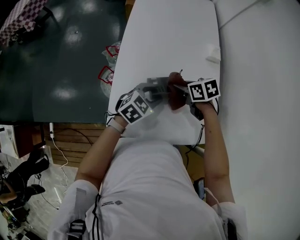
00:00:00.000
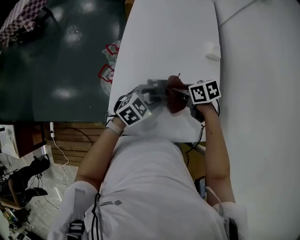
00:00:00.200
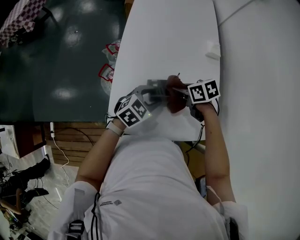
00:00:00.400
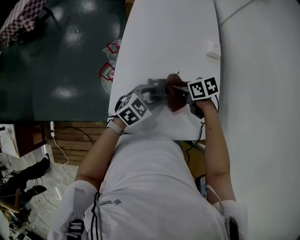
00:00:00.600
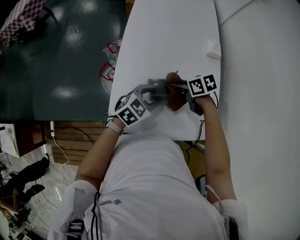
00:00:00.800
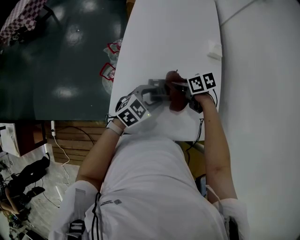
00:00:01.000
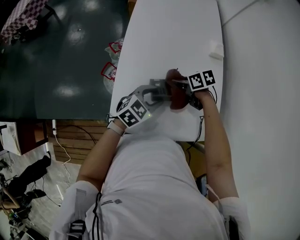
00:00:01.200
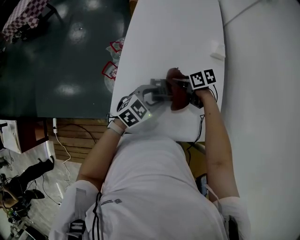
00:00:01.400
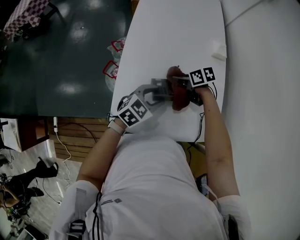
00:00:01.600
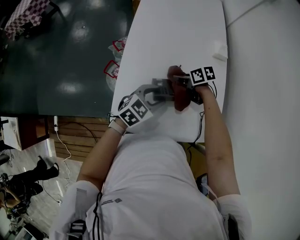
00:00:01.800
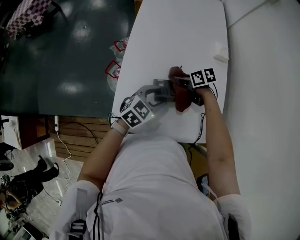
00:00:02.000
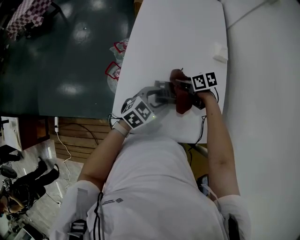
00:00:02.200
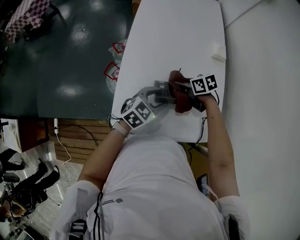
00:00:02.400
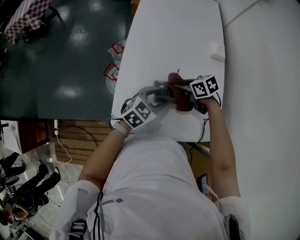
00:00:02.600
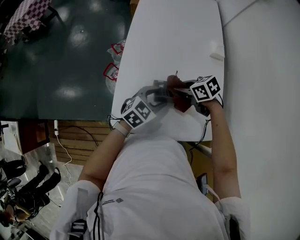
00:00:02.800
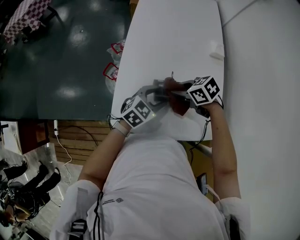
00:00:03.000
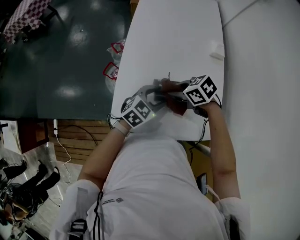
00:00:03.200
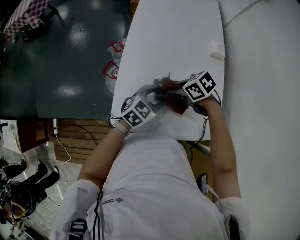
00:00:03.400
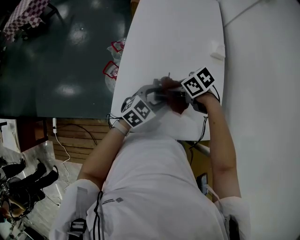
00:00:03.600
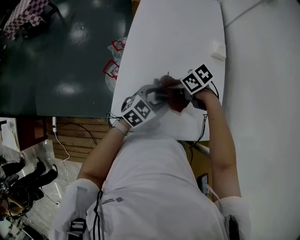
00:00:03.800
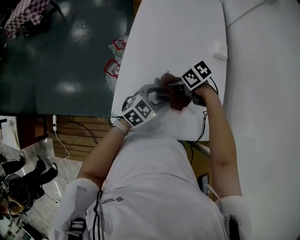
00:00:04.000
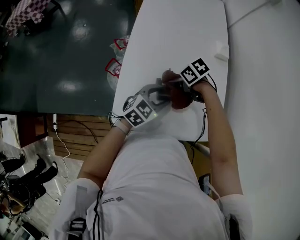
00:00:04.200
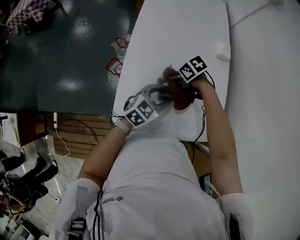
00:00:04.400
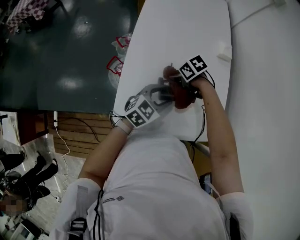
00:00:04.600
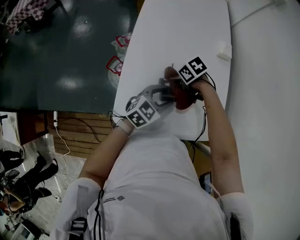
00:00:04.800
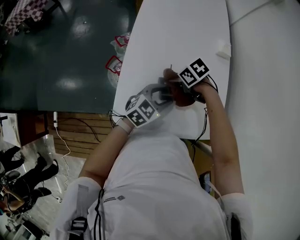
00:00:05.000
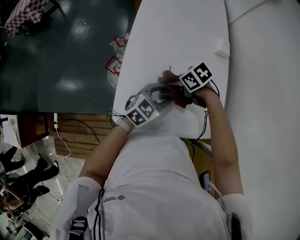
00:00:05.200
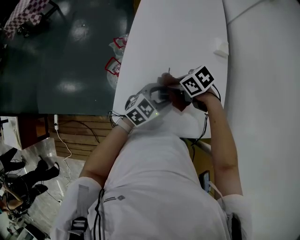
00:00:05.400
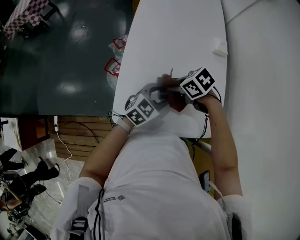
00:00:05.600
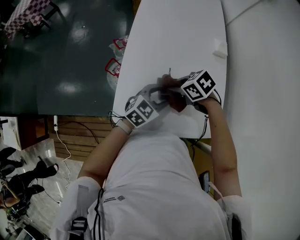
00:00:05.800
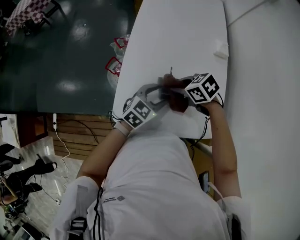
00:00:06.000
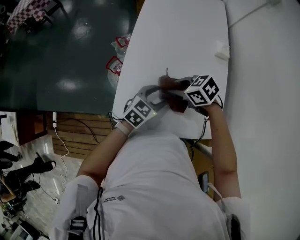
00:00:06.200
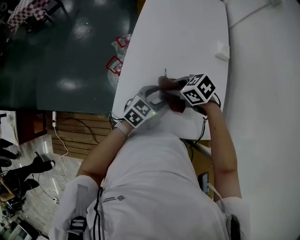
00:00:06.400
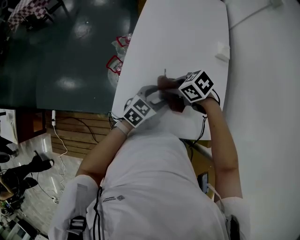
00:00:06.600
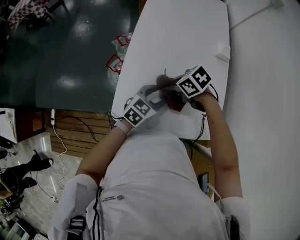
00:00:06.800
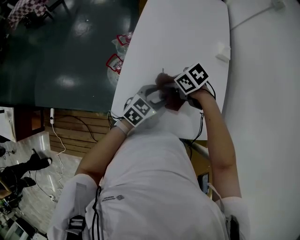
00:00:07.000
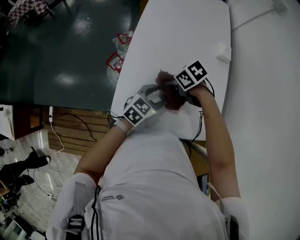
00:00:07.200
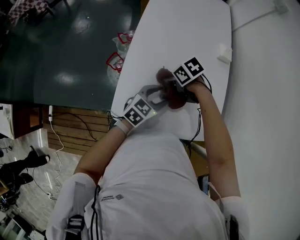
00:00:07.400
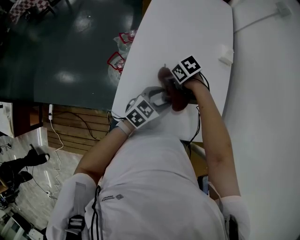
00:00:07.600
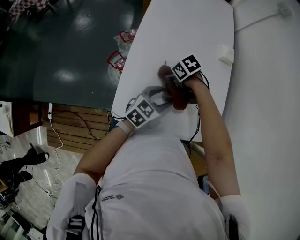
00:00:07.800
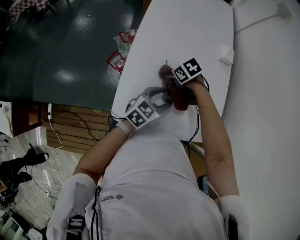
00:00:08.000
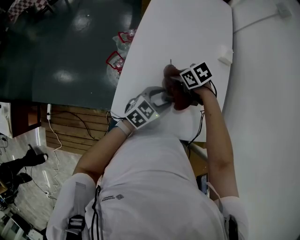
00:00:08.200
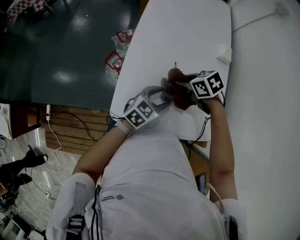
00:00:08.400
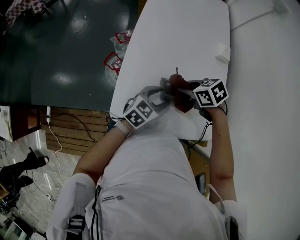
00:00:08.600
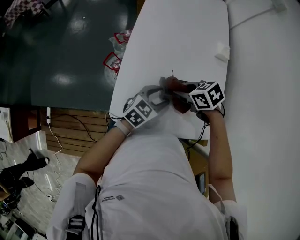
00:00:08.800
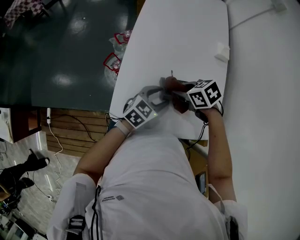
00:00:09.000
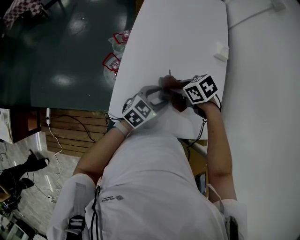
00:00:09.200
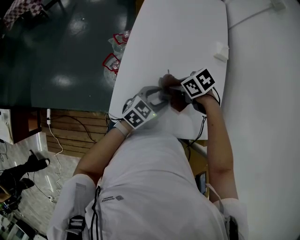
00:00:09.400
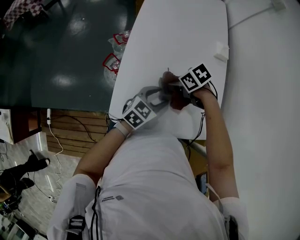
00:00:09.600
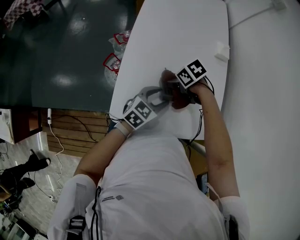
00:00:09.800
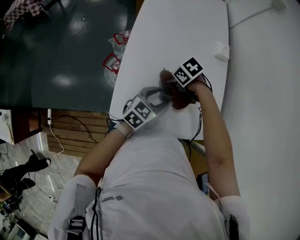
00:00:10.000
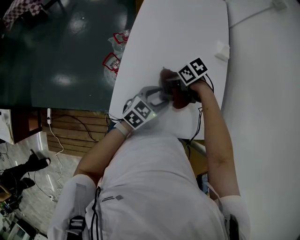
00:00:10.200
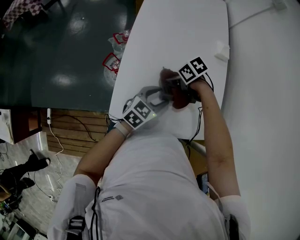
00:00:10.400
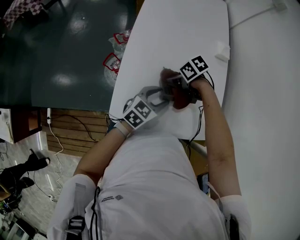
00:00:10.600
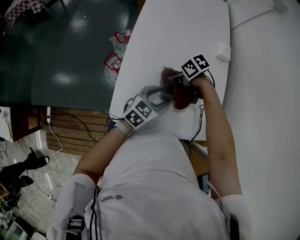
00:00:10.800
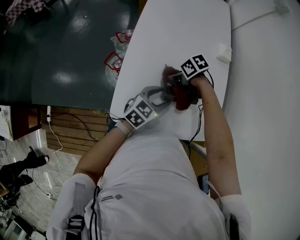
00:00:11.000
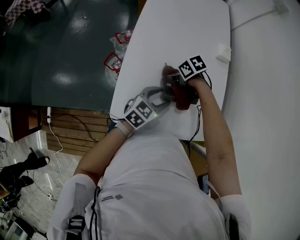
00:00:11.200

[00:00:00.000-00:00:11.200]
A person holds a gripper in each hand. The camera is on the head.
00:00:00.000 to 00:00:01.600: The right gripper moves downward, about 5 cm.
00:00:01.600 to 00:00:03.200: The right gripper moves some 10 cm, and swivels about 30 degrees.
00:00:03.200 to 00:00:04.800: The right gripper heads downward, covering approximately 5 cm.
00:00:04.800 to 00:00:06.400: The right gripper ends up some 10 cm from where it was.
00:00:06.400 to 00:00:08.000: The right gripper heads downward, covering some 10 cm.
00:00:09.600 to 00:00:11.200: The right gripper moves approximately 5 cm.

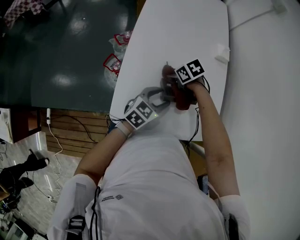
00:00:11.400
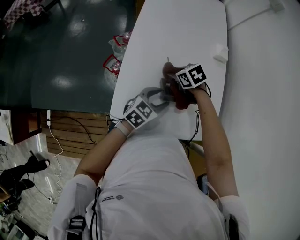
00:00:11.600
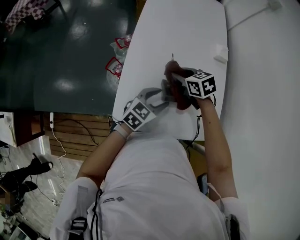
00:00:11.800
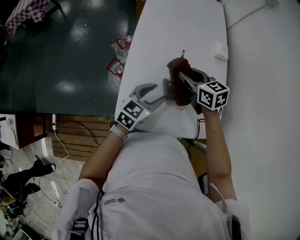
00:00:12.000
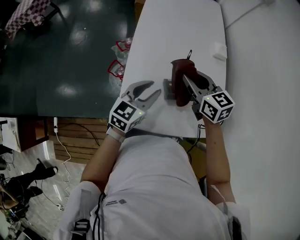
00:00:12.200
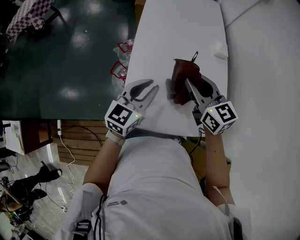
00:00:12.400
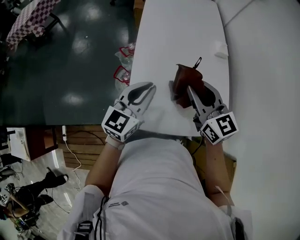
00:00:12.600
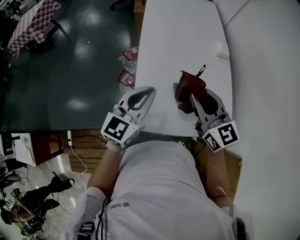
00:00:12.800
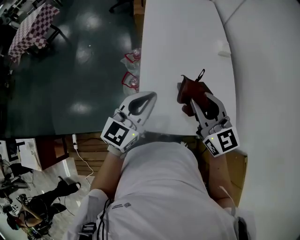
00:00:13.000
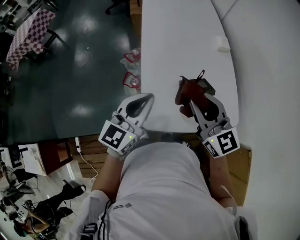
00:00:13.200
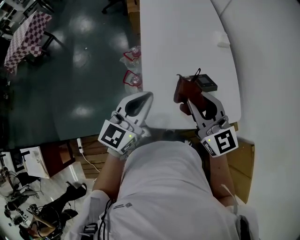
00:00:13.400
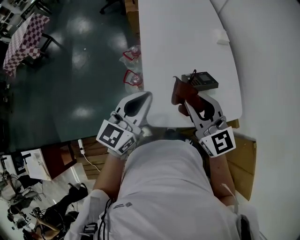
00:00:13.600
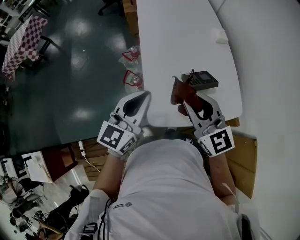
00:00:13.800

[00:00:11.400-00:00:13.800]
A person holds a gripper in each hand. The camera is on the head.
00:00:11.400 to 00:00:12.600: The left gripper heads upward, covering about 15 cm, rotates approximately 30 degrees, and closes. The right gripper is displaced upward by about 25 cm, and angles its fingers upward, by about 50 degrees.
00:00:12.600 to 00:00:13.800: The right gripper heads backward and to the left, covering about 10 cm; the left gripper travels to the left by about 10 cm.

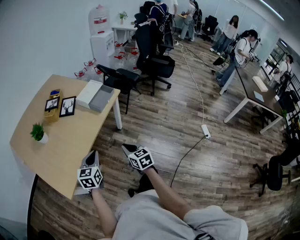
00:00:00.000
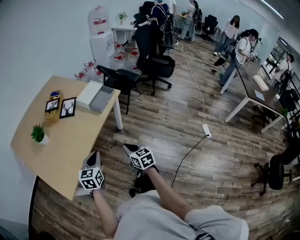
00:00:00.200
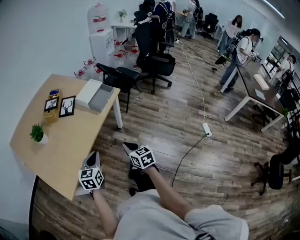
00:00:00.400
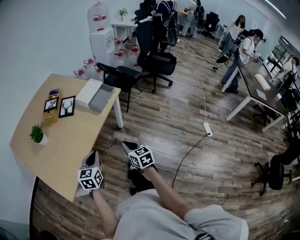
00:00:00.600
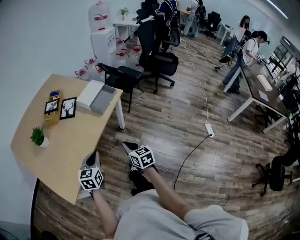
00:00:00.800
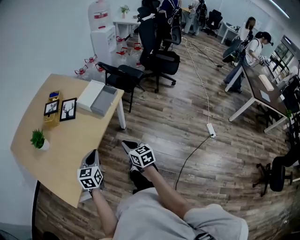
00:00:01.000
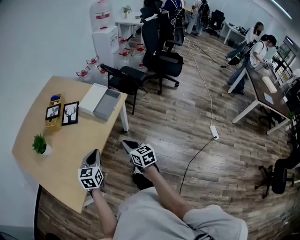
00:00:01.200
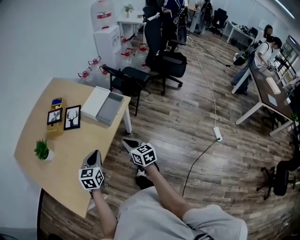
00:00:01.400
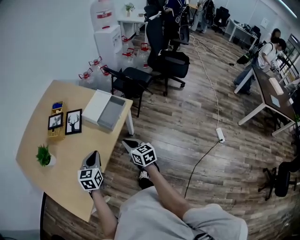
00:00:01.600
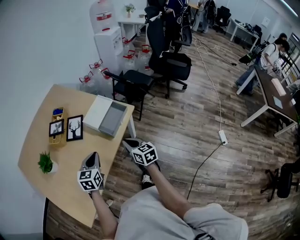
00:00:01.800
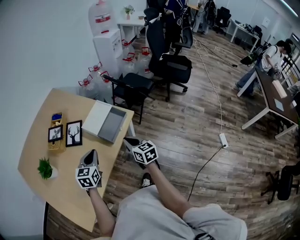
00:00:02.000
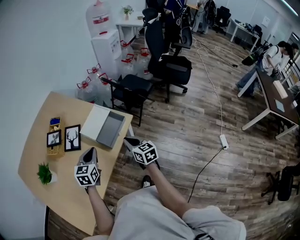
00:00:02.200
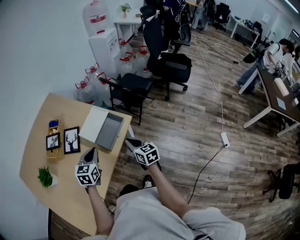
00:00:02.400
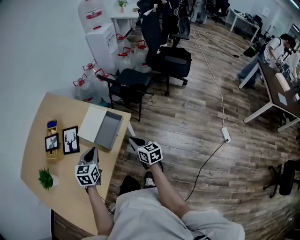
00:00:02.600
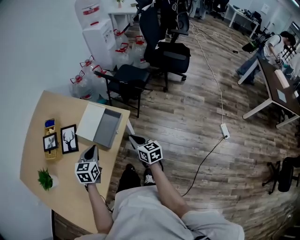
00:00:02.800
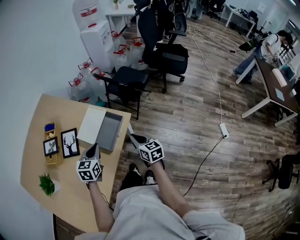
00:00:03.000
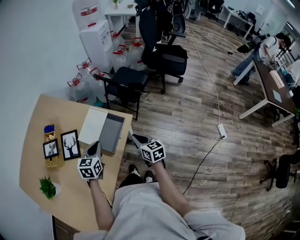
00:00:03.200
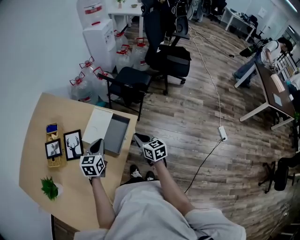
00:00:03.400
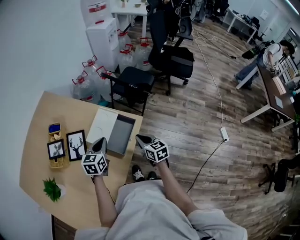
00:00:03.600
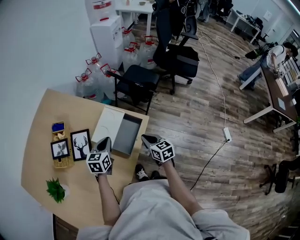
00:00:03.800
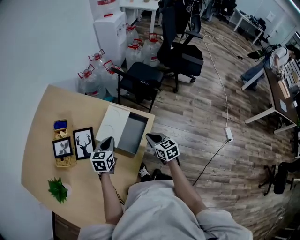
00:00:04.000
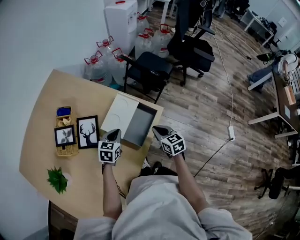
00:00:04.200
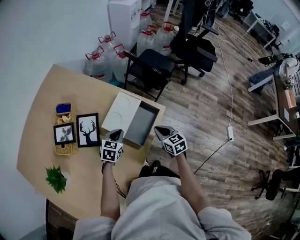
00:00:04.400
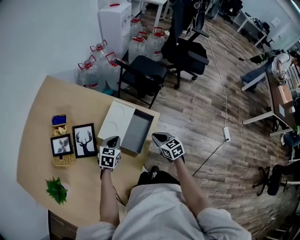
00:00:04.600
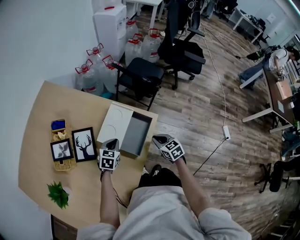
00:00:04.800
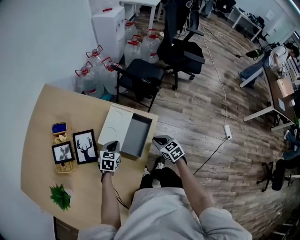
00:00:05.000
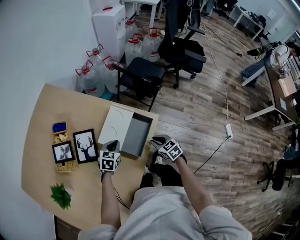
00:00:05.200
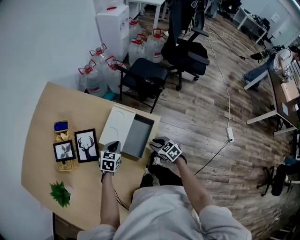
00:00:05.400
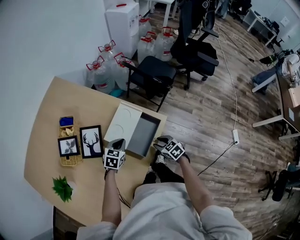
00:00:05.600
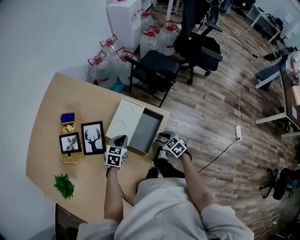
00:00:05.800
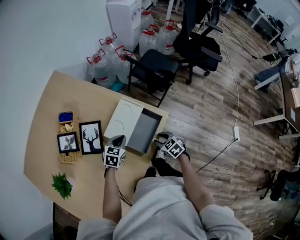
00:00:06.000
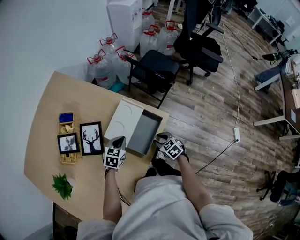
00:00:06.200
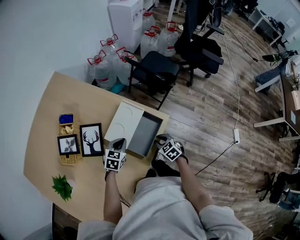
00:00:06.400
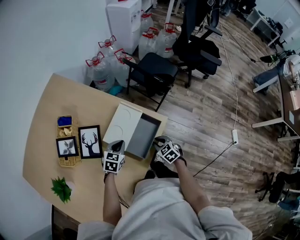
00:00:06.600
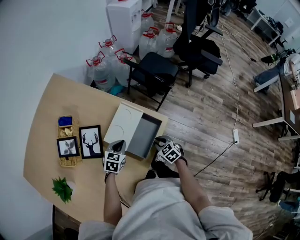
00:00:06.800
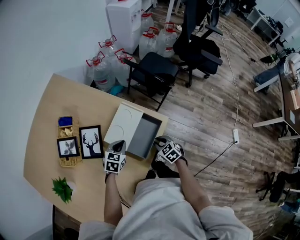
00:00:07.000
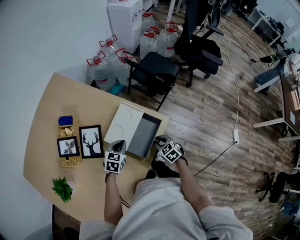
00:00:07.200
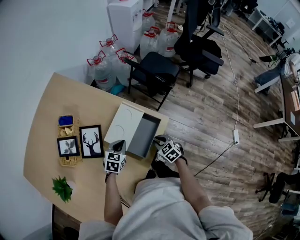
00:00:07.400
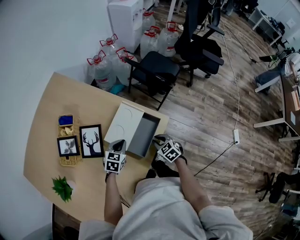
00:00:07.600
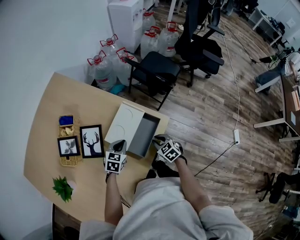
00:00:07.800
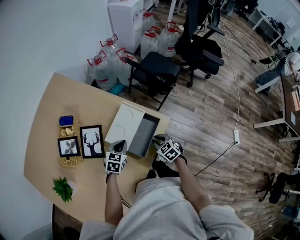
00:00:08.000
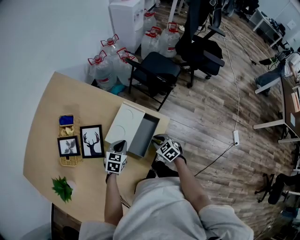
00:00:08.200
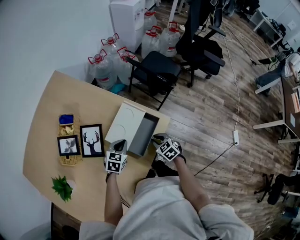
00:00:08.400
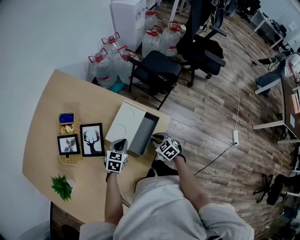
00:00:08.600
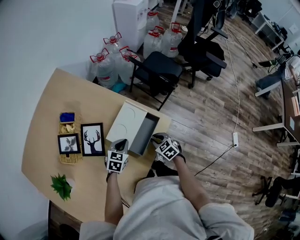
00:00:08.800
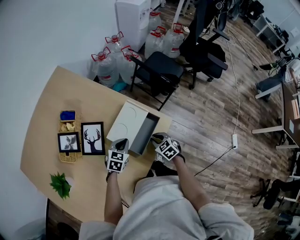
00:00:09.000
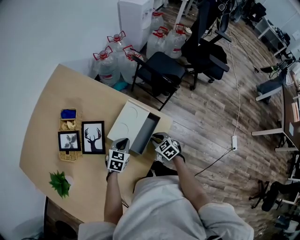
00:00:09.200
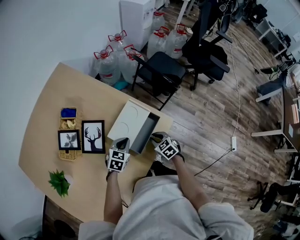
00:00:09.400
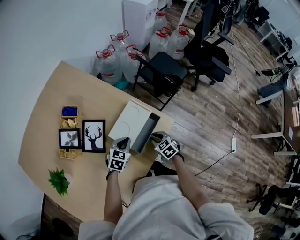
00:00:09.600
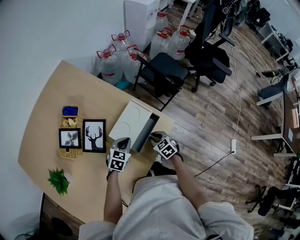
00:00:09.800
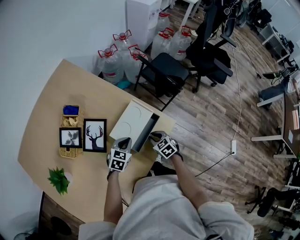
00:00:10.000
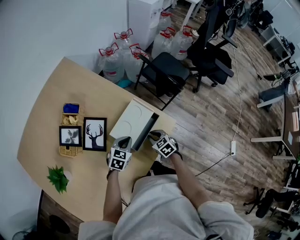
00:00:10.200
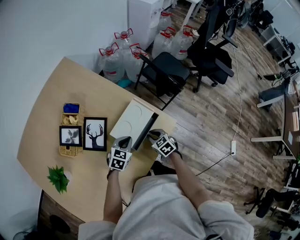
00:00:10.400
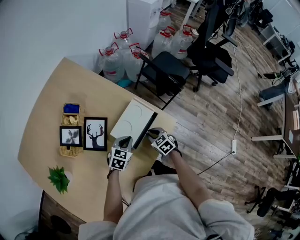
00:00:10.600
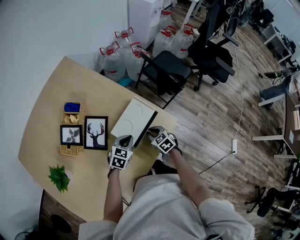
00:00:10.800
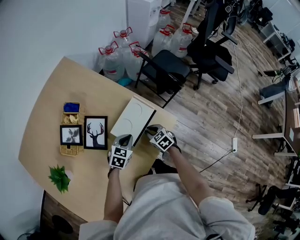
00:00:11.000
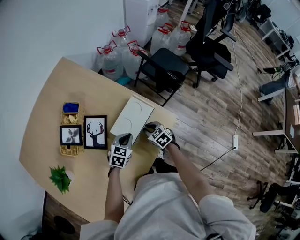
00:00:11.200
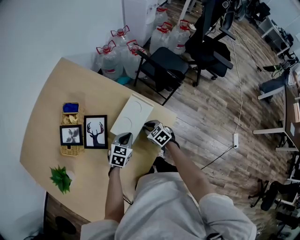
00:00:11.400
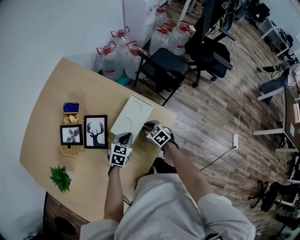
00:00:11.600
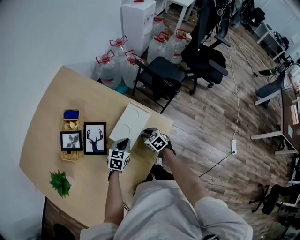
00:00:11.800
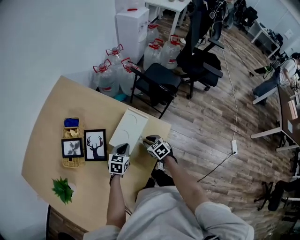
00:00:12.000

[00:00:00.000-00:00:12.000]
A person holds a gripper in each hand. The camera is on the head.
00:00:00.000 to 00:00:01.600: The two grippers go some 20 cm forward.
00:00:01.600 to 00:00:03.000: The right gripper goes roughly 20 cm forward and to the right. The left gripper goes about 20 cm forward.
00:00:03.000 to 00:00:04.400: The left gripper travels downward, forward and to the left by approximately 15 cm; the right gripper travels to the left, downward and forward by roughly 15 cm.
00:00:04.400 to 00:00:06.000: The right gripper heads downward, covering some 10 cm, turns by roughly 20 degrees, and opens its fingers.
00:00:06.000 to 00:00:09.000: The grippers make only small movements.
00:00:09.000 to 00:00:10.400: The grippers make only small movements.
00:00:10.400 to 00:00:12.000: The grippers stay close to where they were, moving slightly.
